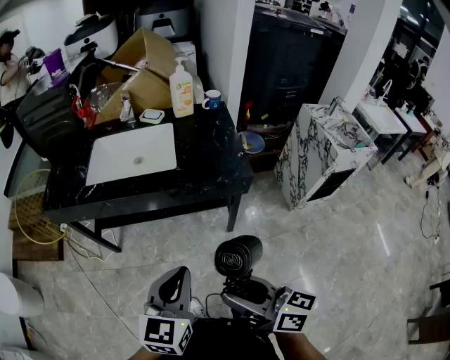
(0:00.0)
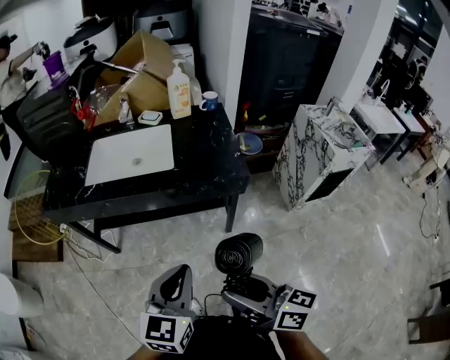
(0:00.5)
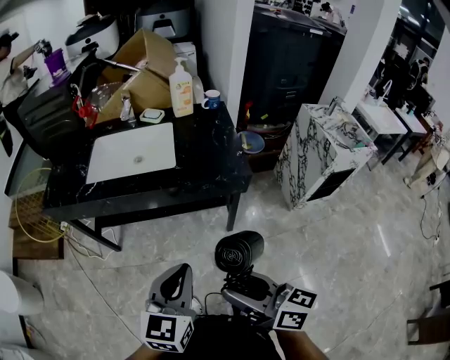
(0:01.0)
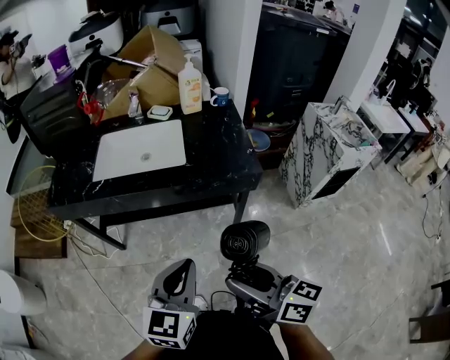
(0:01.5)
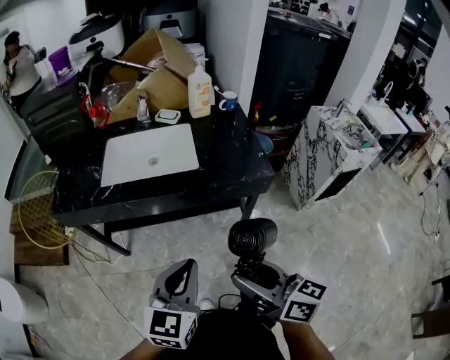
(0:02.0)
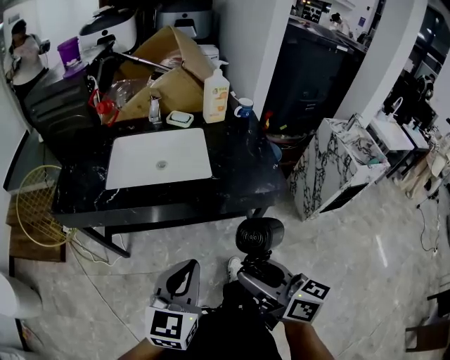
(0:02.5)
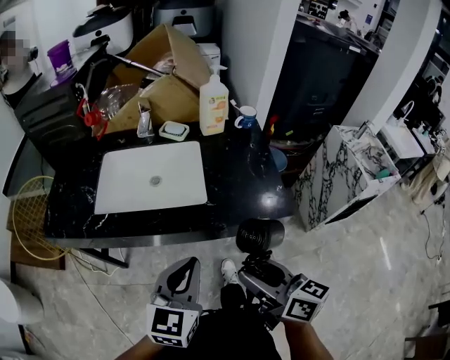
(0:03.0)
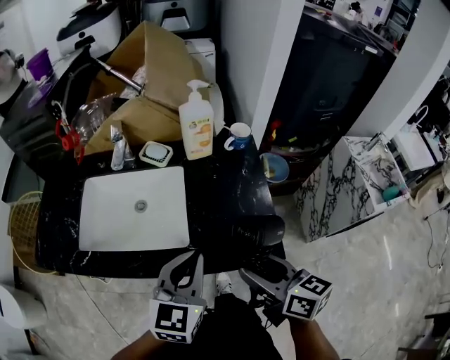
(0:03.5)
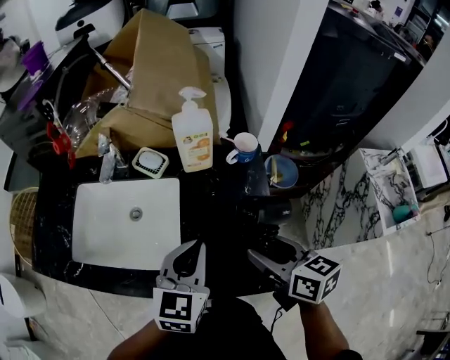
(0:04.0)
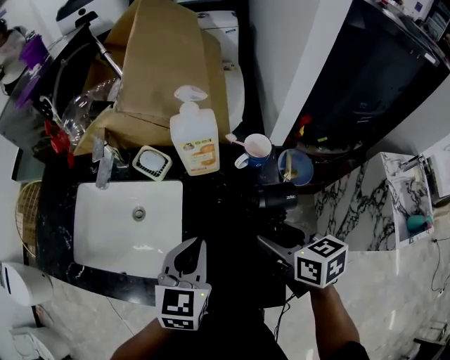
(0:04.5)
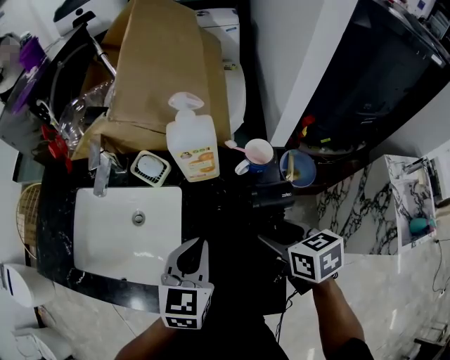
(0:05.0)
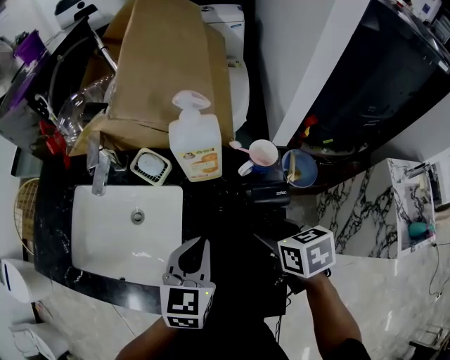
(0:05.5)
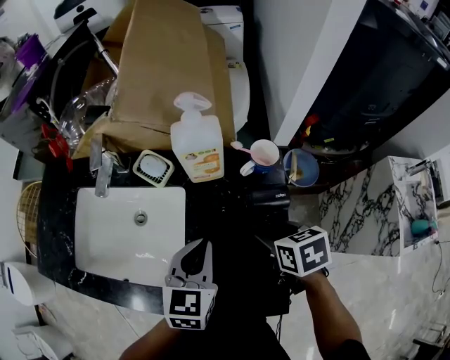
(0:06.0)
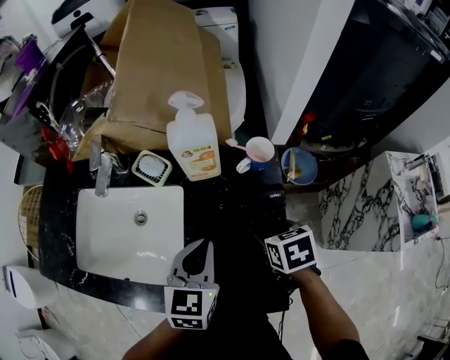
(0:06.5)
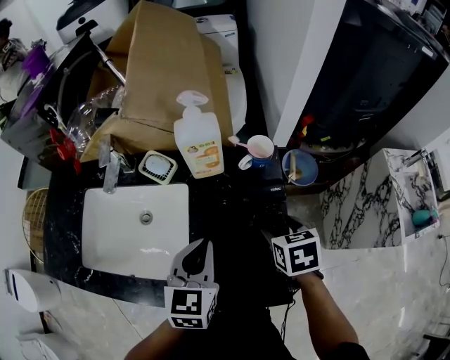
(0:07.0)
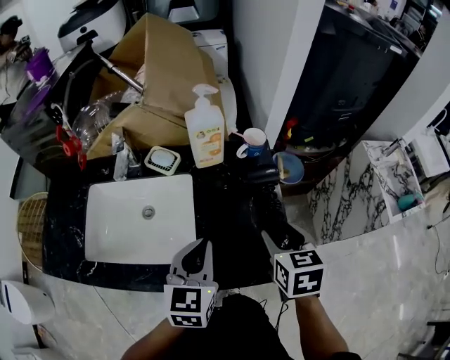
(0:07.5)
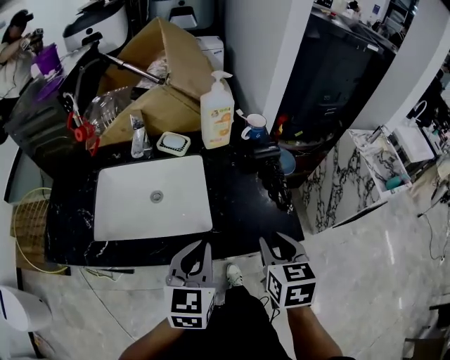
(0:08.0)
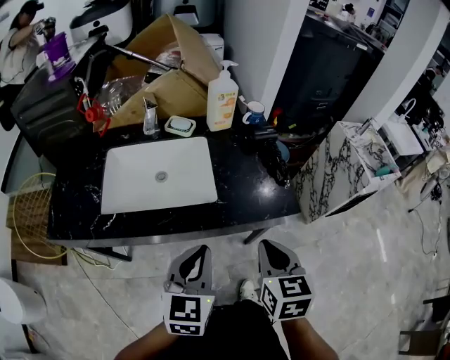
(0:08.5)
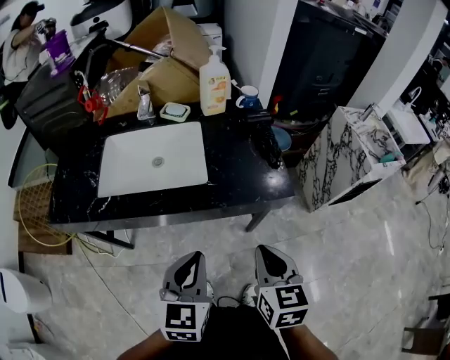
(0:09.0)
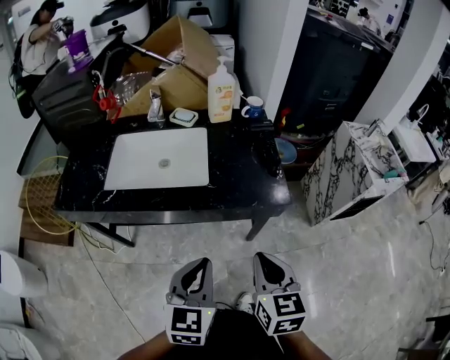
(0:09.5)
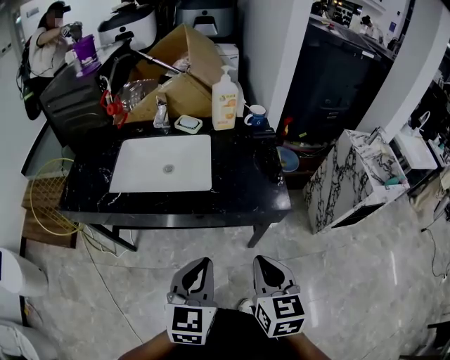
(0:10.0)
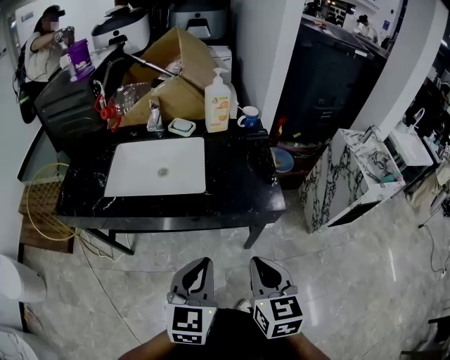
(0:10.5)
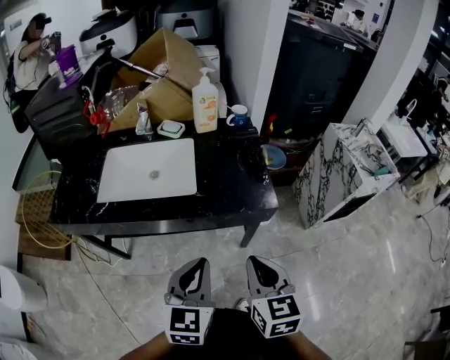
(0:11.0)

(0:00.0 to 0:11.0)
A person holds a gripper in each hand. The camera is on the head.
0:00.0 - 0:02.0: The left gripper heads to the left, covering roughly 5 cm; the right gripper travels to the left and forward by about 10 cm.
0:02.0 - 0:03.5: The two grippers go about 35 cm forward and to the right.
0:03.5 - 0:05.5: The right gripper goes roughly 30 cm forward, to the right and downward, and points its fingers roughly 40 degrees further downward; the left gripper travels forward, downward and to the right by approximately 20 cm.
0:05.5 - 0:07.5: The right gripper shifts approximately 15 cm backward and upward, and rotates approximately 30 degrees, while the left gripper shifts about 10 cm backward.
0:07.5 - 0:09.0: Both grippers travel together backward, about 30 cm. The right gripper closes its fingers.
0:09.0 - 0:11.0: The left gripper is displaced to the right by roughly 5 cm.

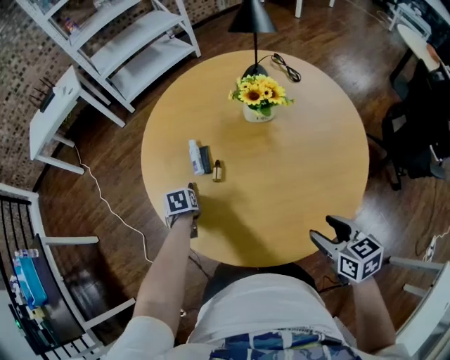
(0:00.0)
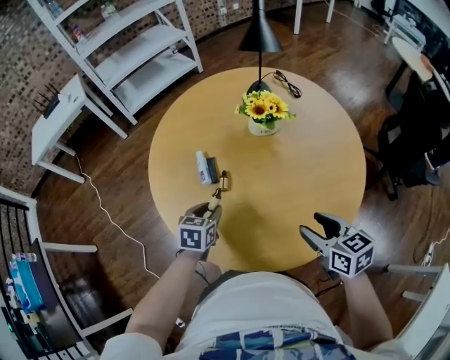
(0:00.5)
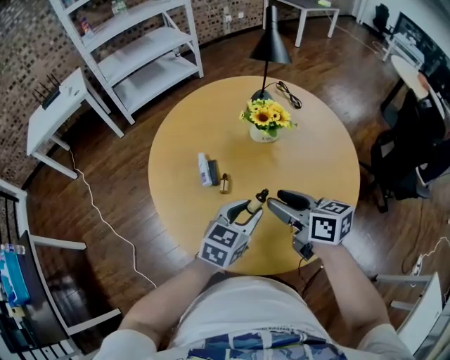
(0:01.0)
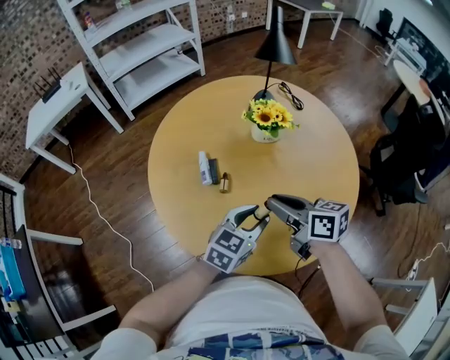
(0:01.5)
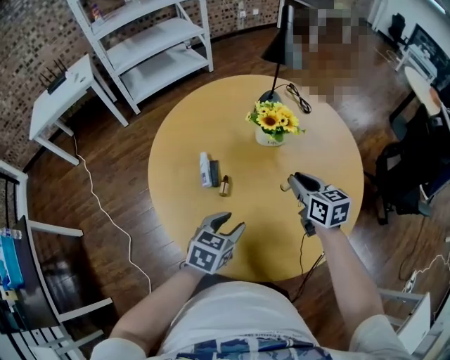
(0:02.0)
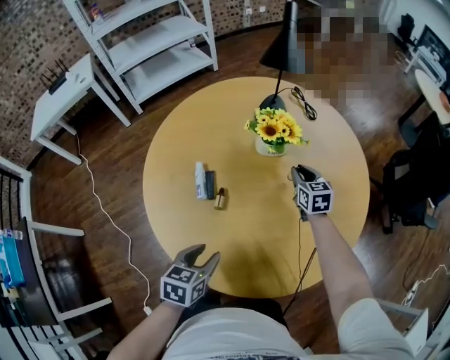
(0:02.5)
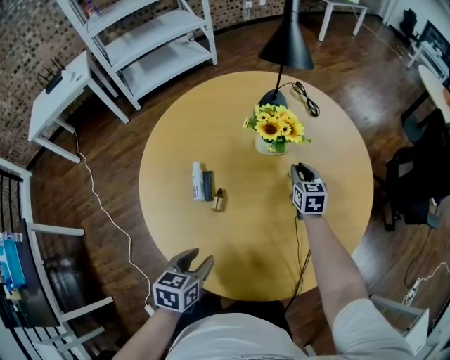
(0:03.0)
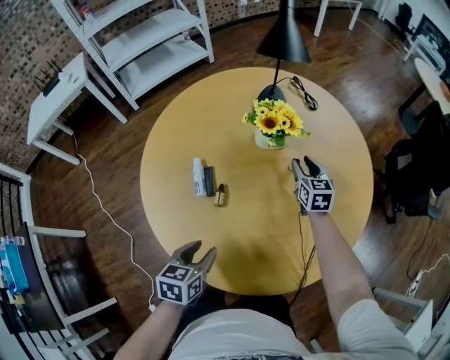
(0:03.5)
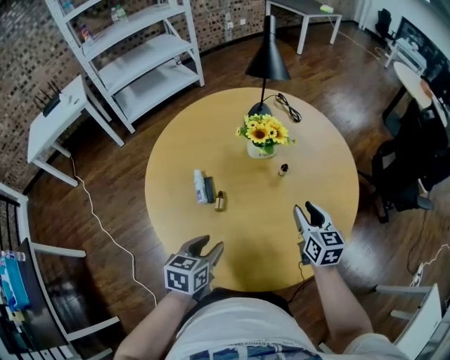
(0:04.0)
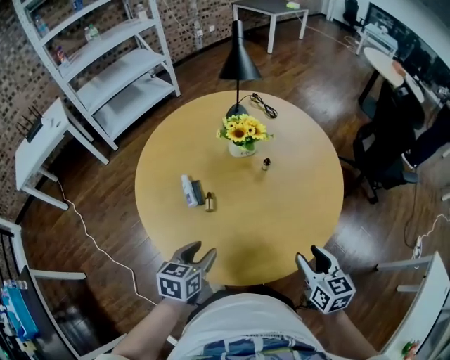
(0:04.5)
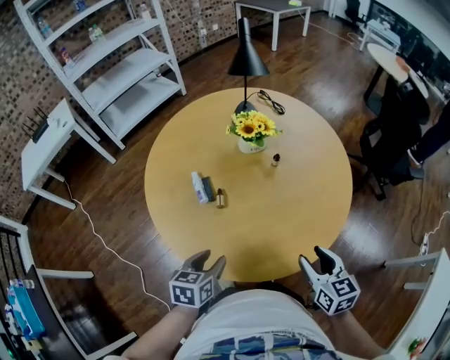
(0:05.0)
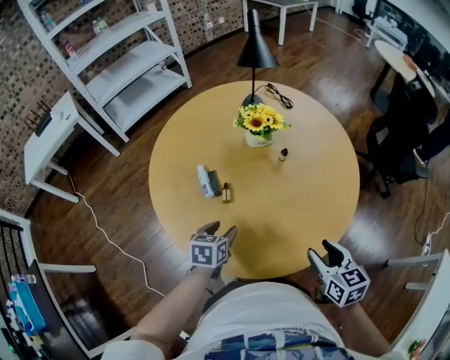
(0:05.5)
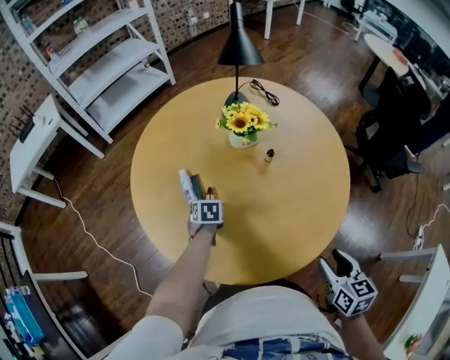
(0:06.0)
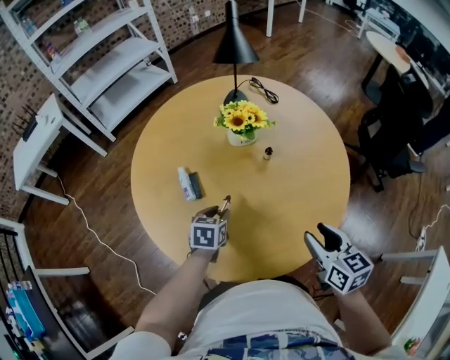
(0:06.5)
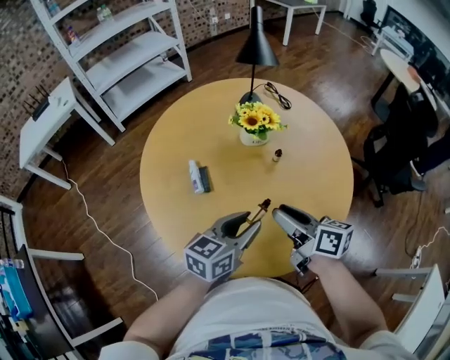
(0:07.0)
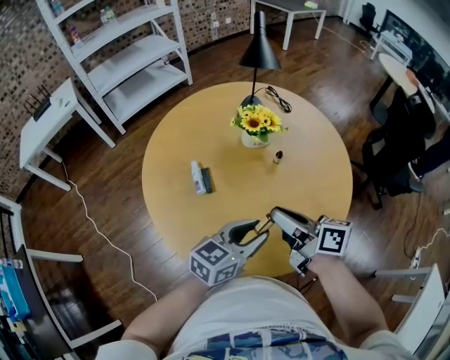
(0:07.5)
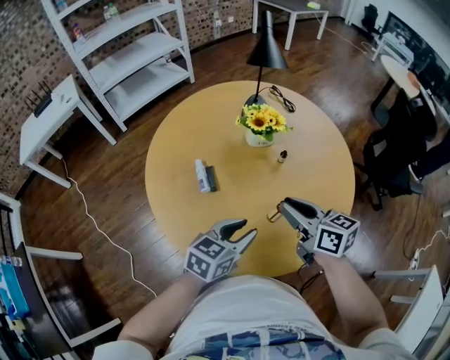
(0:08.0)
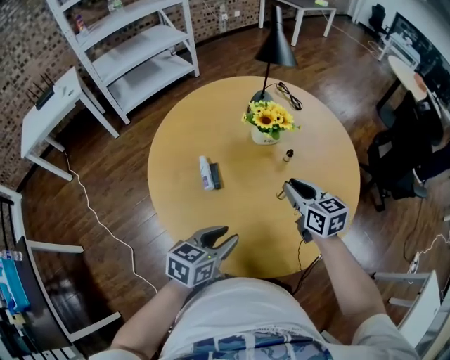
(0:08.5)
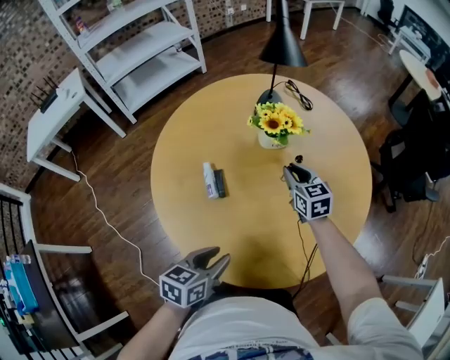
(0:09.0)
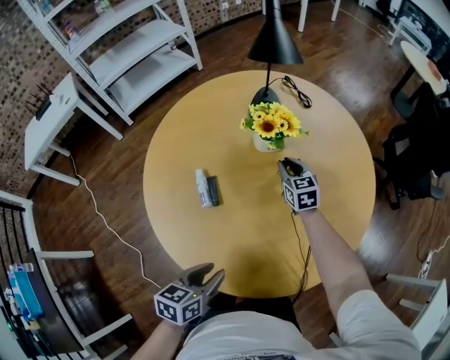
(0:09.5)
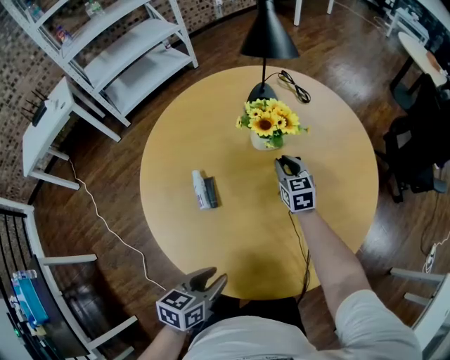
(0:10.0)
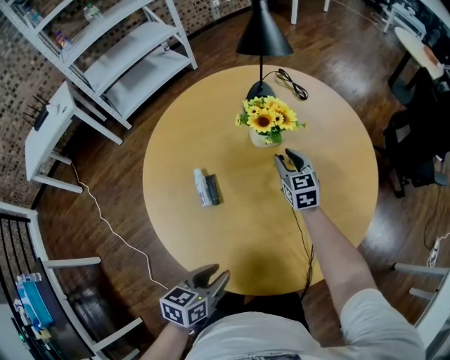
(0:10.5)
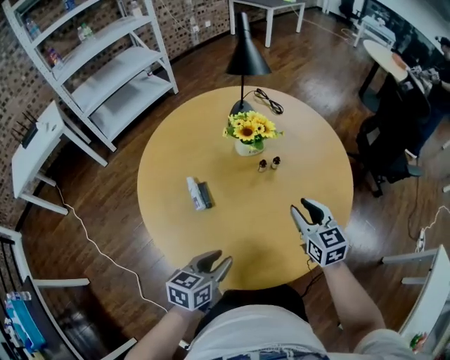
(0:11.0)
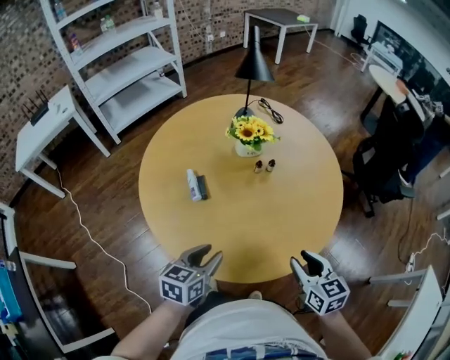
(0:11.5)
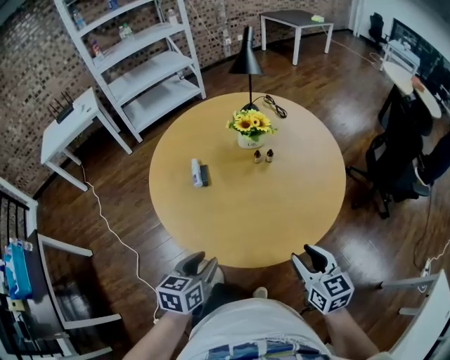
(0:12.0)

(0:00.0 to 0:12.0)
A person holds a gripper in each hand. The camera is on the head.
0:00.0 - 0:02.0: The left gripper heads upward, to the right and backward, covering approximately 25 cm, and angles its fingers upward, by some 30 degrees. The right gripper is displaced forward by some 20 cm, and closes.
0:02.0 - 0:04.0: The right gripper is displaced to the right by some 5 cm, moves approximately 15 cm forward and comes back, and opens, while the left gripper ends up some 5 cm from where it was.
0:04.0 - 0:06.0: The right gripper is displaced backward and to the right by roughly 20 cm. The left gripper travels downward and forward by some 20 cm, and rotates some 30 degrees.
0:06.0 - 0:08.0: The left gripper goes some 30 cm upward, backward and to the right, and tips its fingers upward by some 40 degrees, while the right gripper moves to the left and forward, approximately 20 cm, rotates some 30 degrees, and closes up.
0:08.0 - 0:10.0: The left gripper heads downward and to the left, covering about 10 cm, and swivels roughly 30 degrees; the right gripper heads forward and downward, covering about 35 cm, and changes its angle by about 30 degrees.
0:10.0 - 0:12.0: The right gripper heads backward, to the right and upward, covering some 50 cm, and opens up, while the left gripper shifts roughly 20 cm backward, upward and to the right.

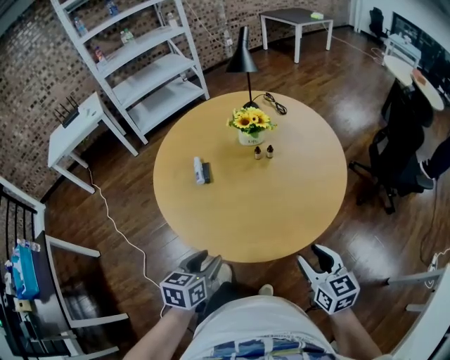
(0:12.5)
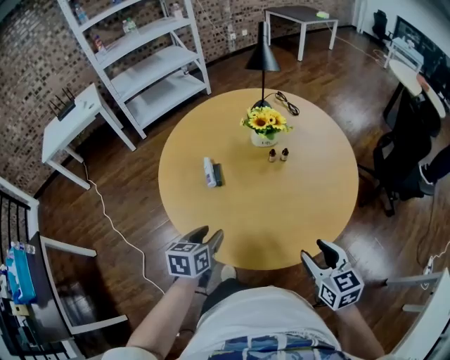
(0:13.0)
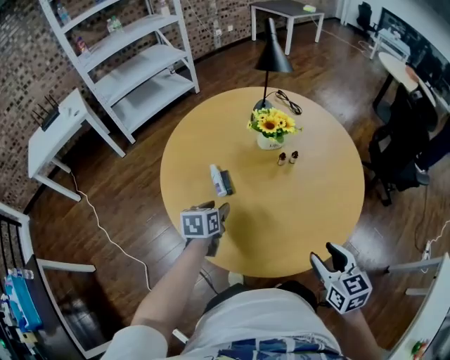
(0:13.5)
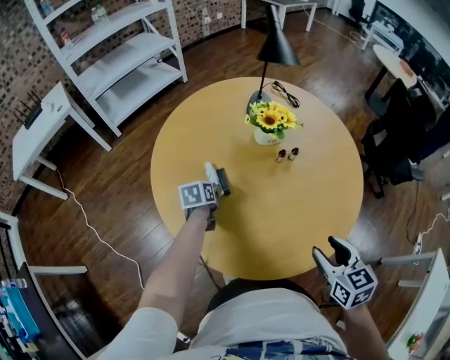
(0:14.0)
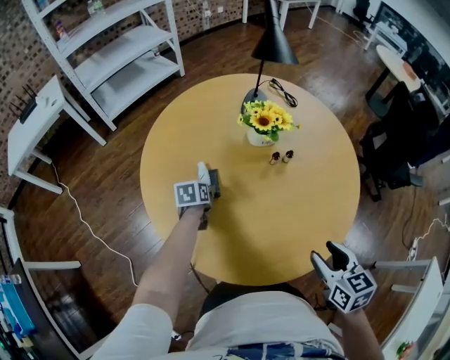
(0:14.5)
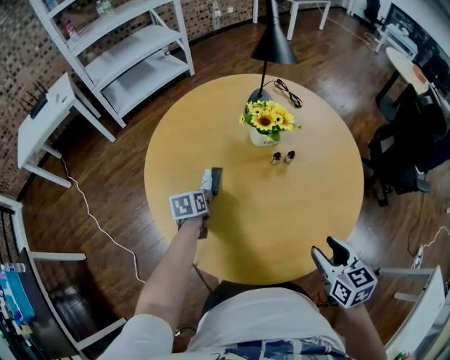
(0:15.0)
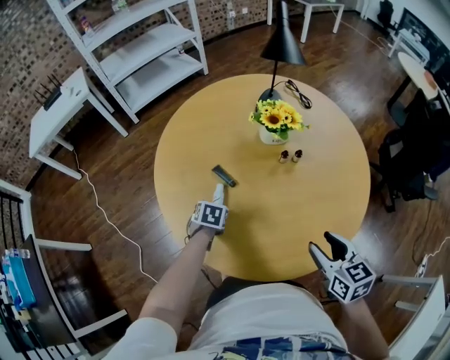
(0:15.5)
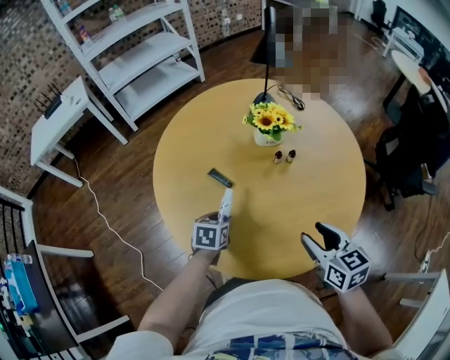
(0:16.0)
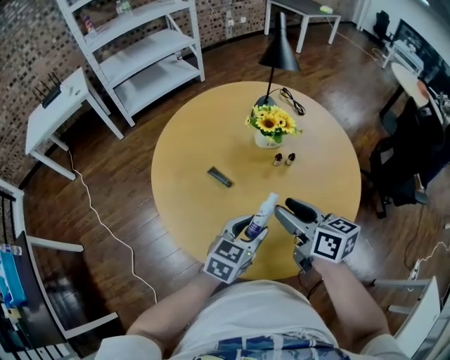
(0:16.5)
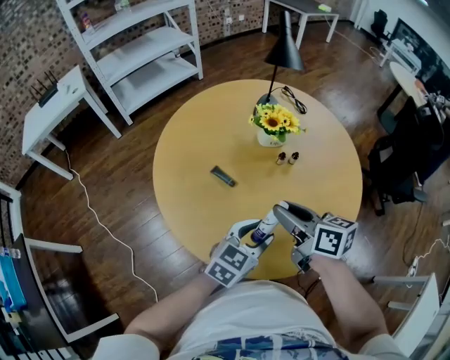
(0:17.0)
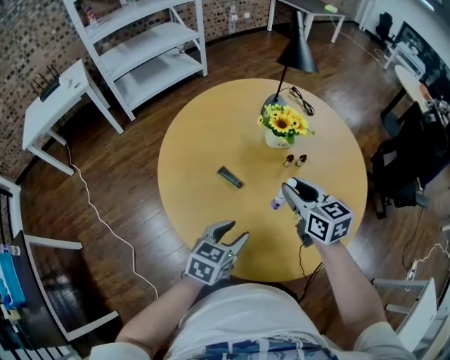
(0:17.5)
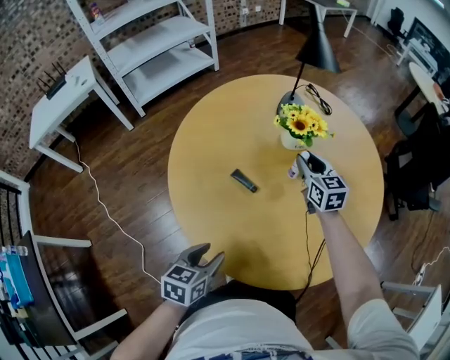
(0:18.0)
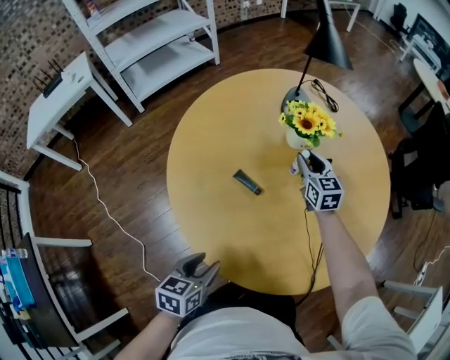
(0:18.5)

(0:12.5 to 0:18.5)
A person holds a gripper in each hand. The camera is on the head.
0:12.5 - 0:14.5: The left gripper goes about 50 cm forward, downward and to the left. The right gripper is displaced forward and to the left by about 20 cm.
0:14.5 - 0:16.5: The left gripper travels backward, upward and to the right by approximately 35 cm, and changes its angle by about 40 degrees; the right gripper travels to the left, forward and upward by about 15 cm, and rotates some 30 degrees.
0:16.5 - 0:18.5: The right gripper shifts some 30 cm forward and downward, and rotates roughly 30 degrees, while the left gripper shifts about 25 cm to the left, and swivels about 30 degrees.
